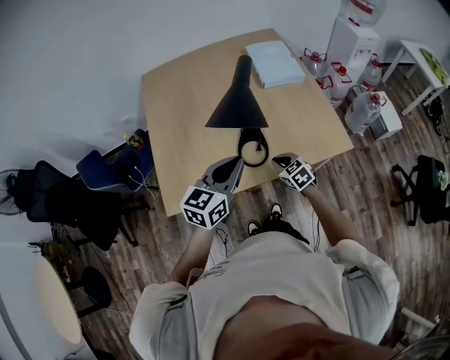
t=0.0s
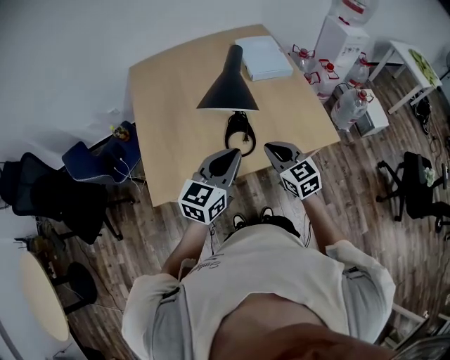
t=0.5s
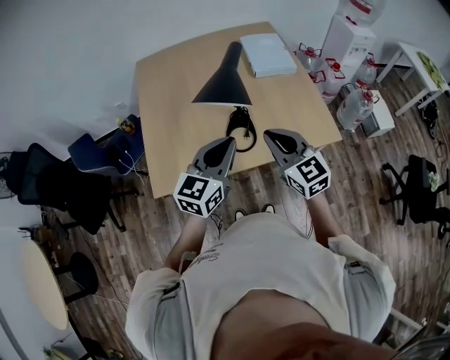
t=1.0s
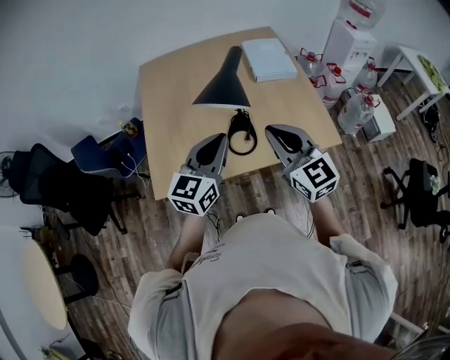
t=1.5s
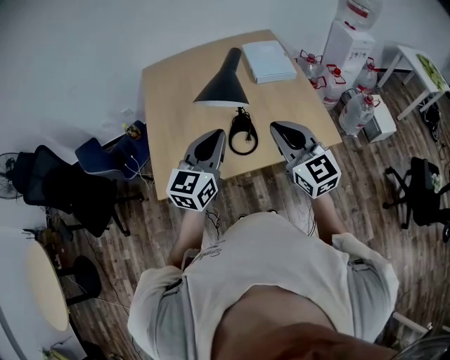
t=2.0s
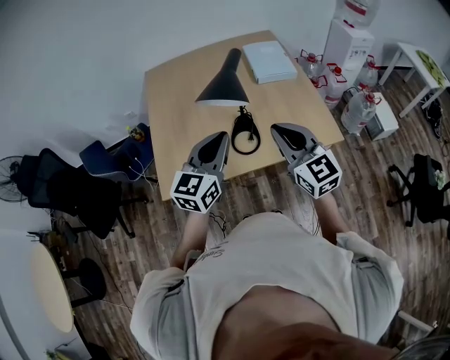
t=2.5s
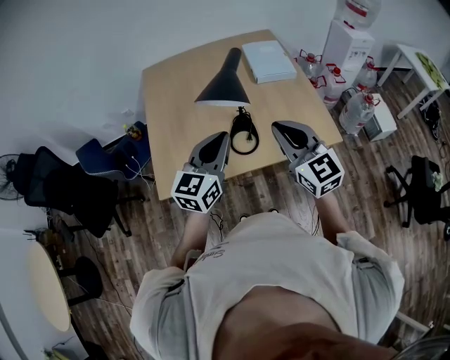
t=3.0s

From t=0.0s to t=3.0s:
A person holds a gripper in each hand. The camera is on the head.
From t=0.0s to t=1.5s: The right gripper moves upward, approximately 30 cm, and tips its fingers upward by some 40 degrees. The left gripper is displaced upward by some 5 cm.
From t=1.5s to t=3.0s: The grippers stay close to where they were, moving slightly.

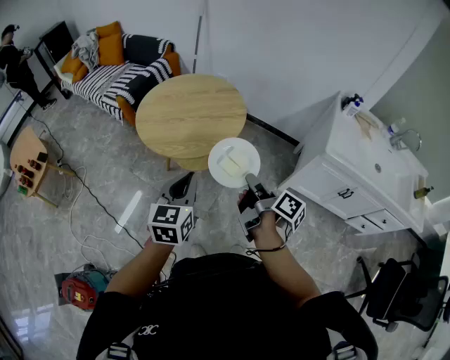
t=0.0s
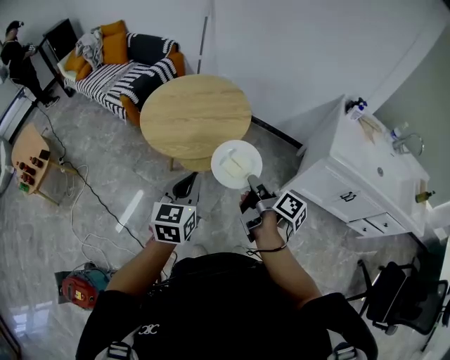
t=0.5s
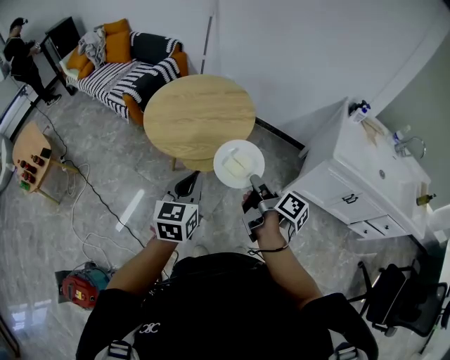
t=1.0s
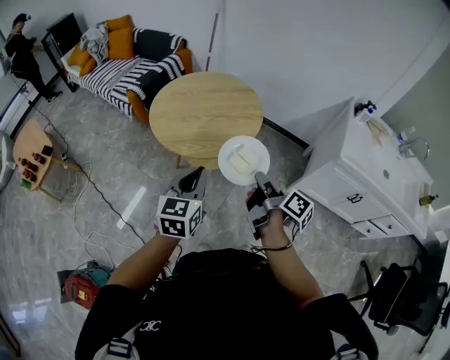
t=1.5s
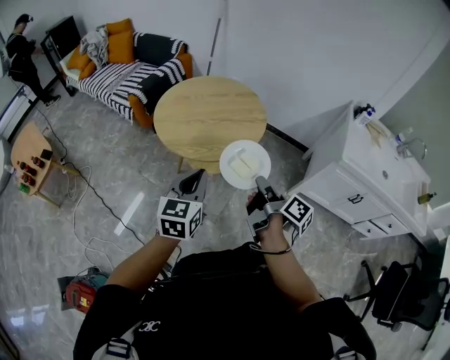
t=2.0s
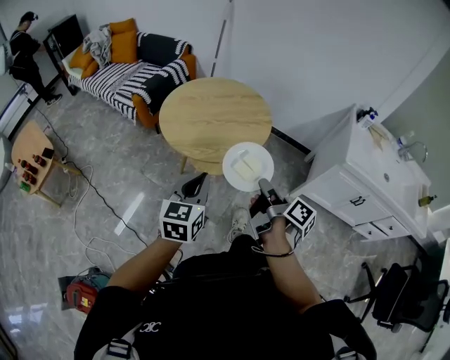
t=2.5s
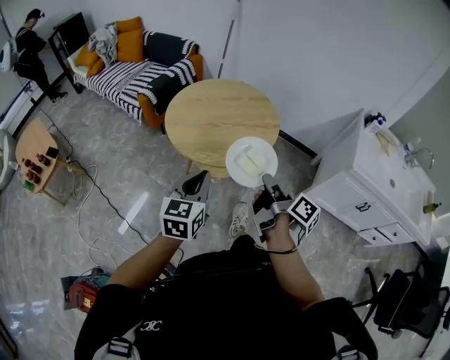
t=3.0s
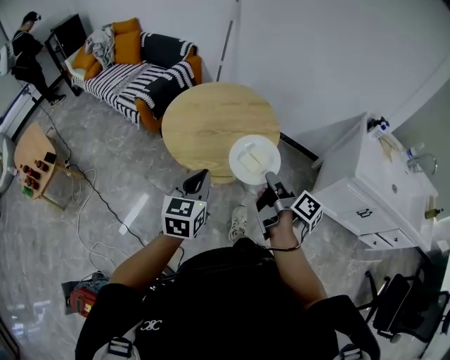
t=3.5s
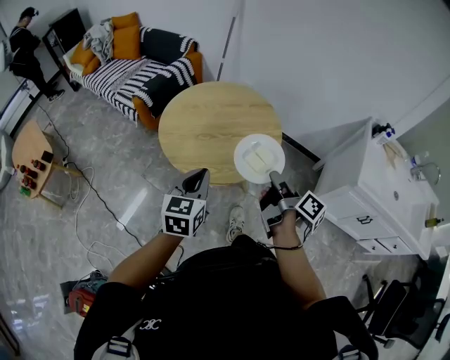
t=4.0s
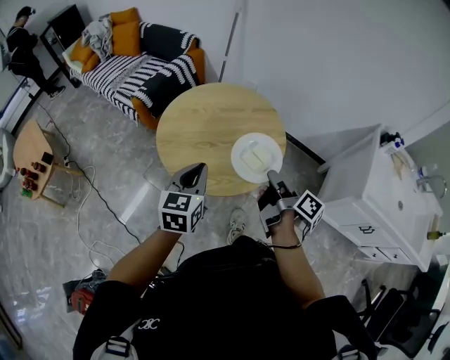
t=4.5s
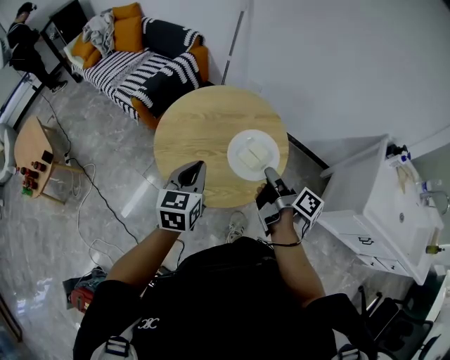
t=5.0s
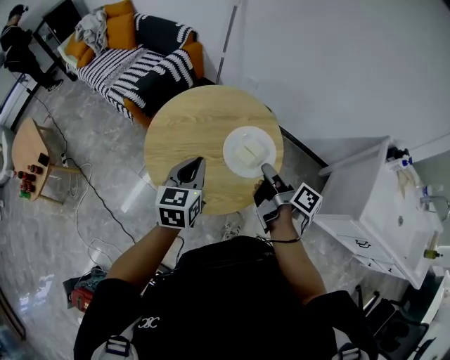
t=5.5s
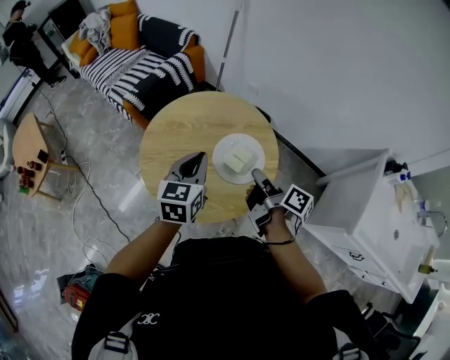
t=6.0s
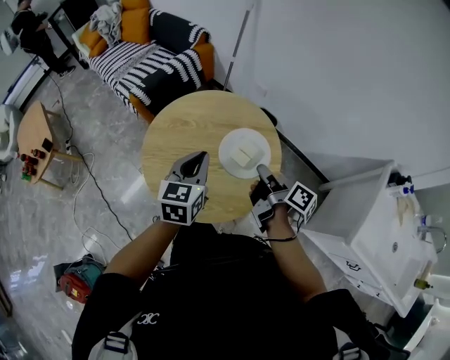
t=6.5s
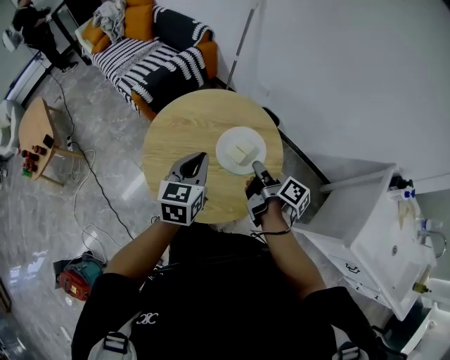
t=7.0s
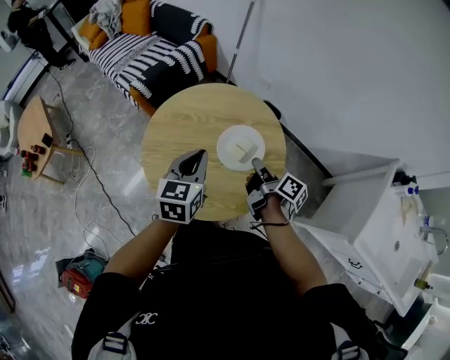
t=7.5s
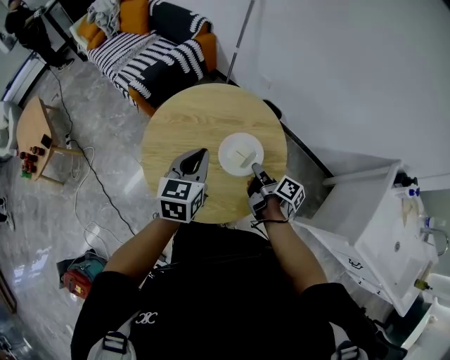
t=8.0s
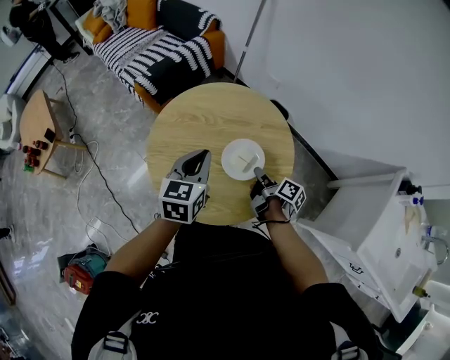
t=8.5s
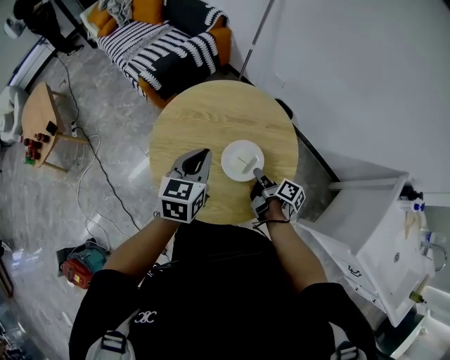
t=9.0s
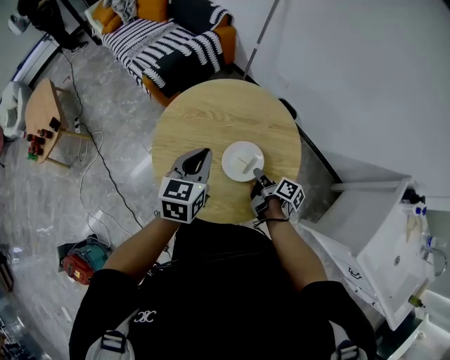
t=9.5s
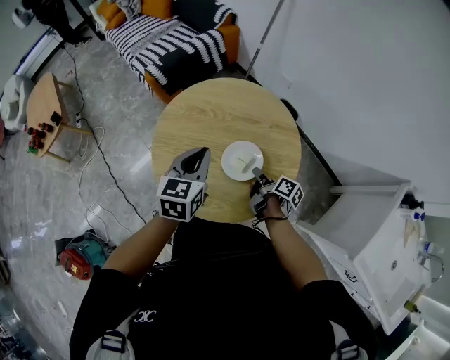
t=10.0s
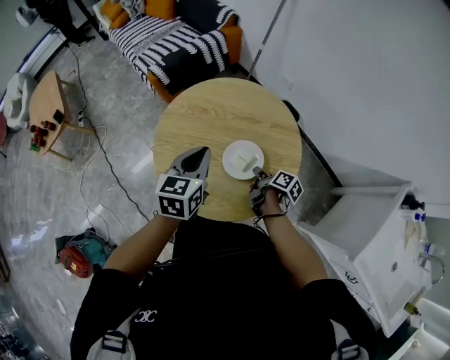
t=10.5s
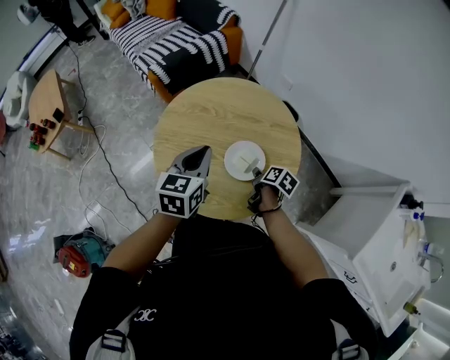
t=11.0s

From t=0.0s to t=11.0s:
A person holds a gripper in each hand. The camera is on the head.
From t=0.0s to t=2.0s: The left gripper changes place by some 10 cm.
From t=2.0s to t=3.5s: The left gripper ends up approximately 10 cm from where it was.
From t=3.5s to t=5.5s: The left gripper changes place by about 25 cm.
From t=5.5s to t=7.5s: The left gripper changes place by some 5 cm.

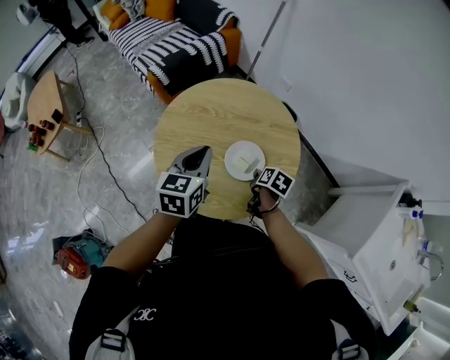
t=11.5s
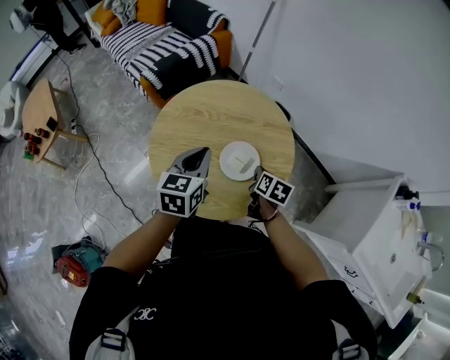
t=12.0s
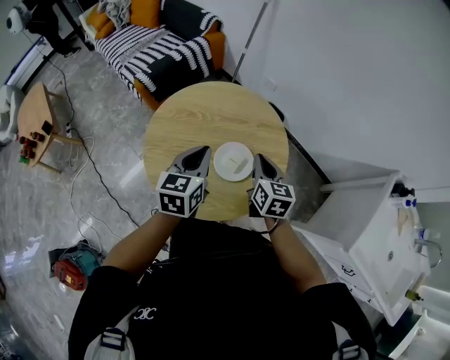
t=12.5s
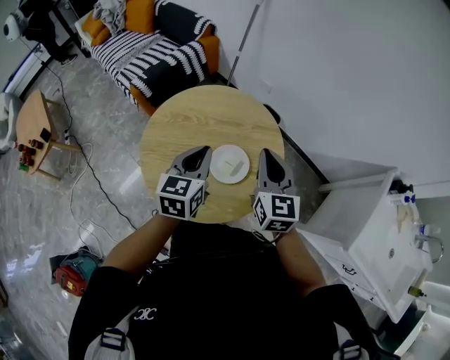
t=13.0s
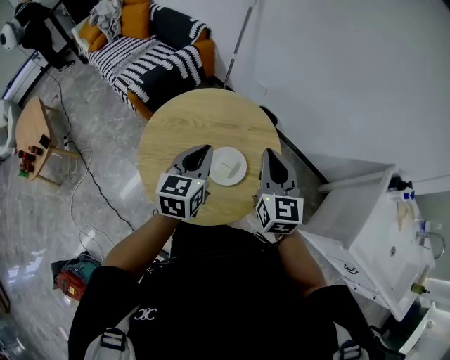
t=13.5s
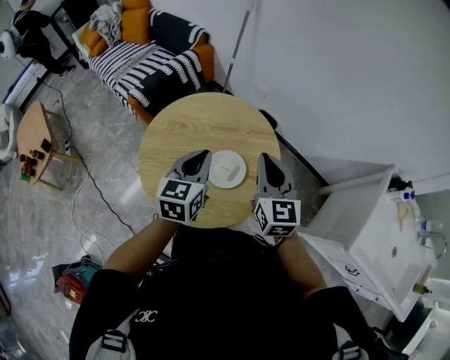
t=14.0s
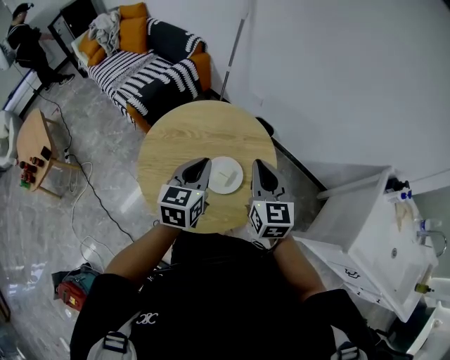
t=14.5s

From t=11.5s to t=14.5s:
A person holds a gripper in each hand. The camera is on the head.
From t=11.5s to t=13.0s: The left gripper ends up some 5 cm from where it was.

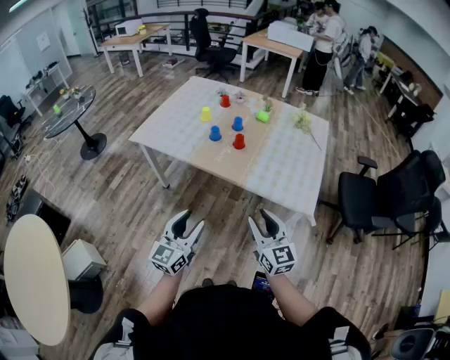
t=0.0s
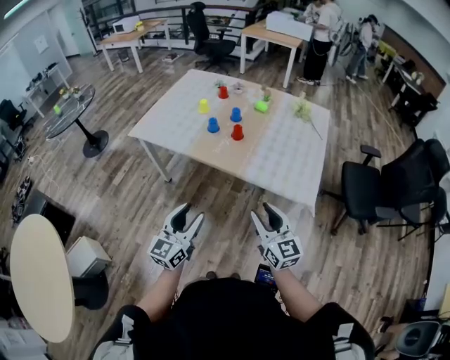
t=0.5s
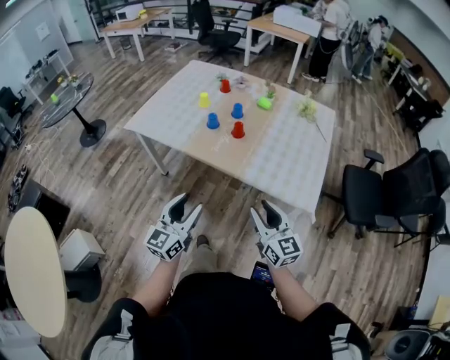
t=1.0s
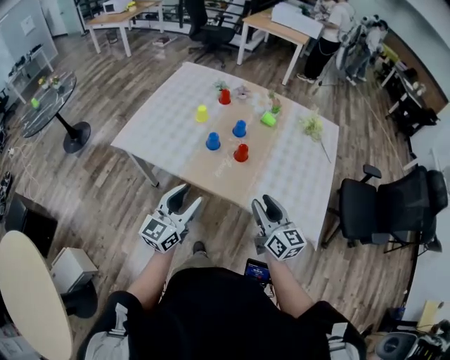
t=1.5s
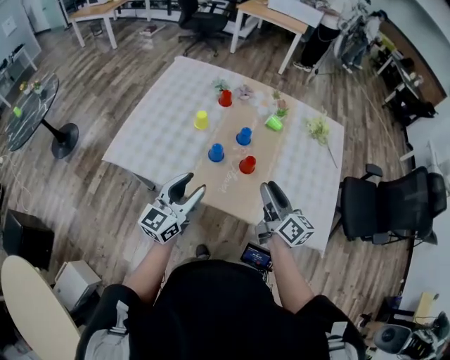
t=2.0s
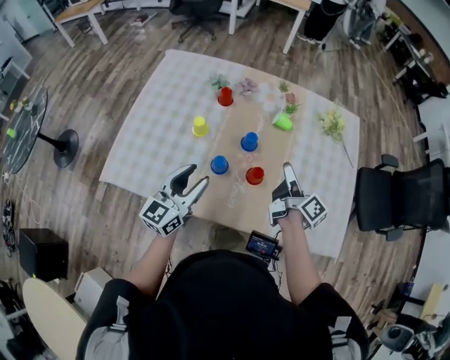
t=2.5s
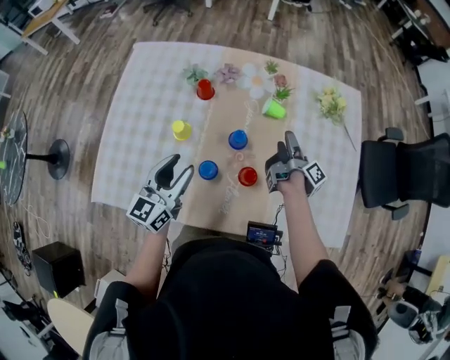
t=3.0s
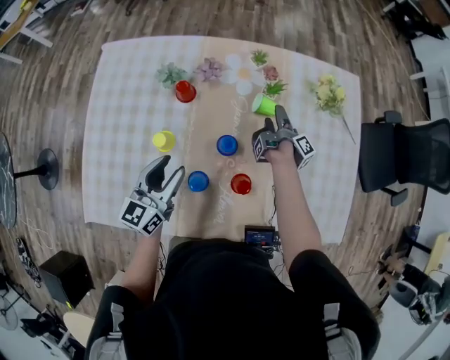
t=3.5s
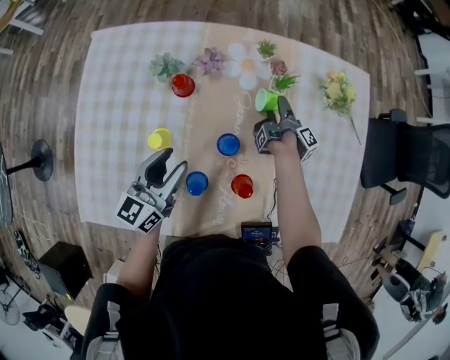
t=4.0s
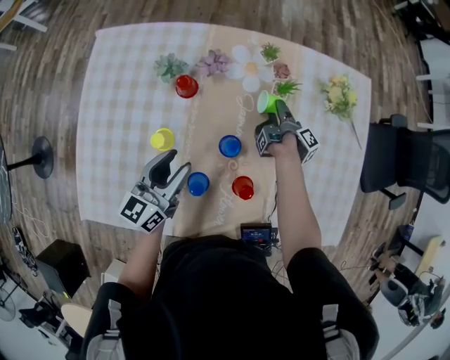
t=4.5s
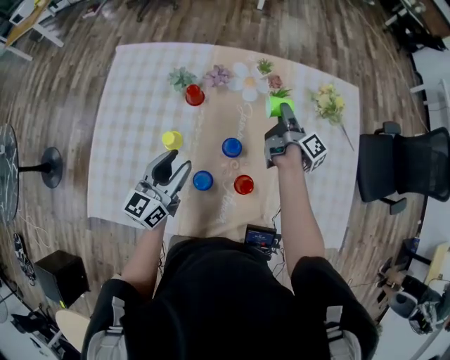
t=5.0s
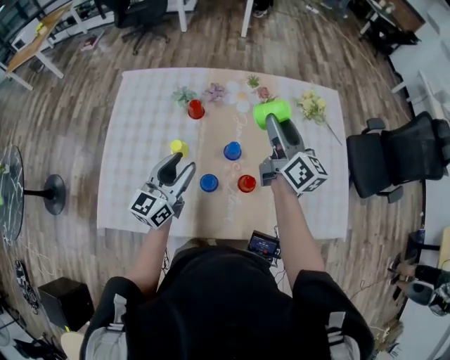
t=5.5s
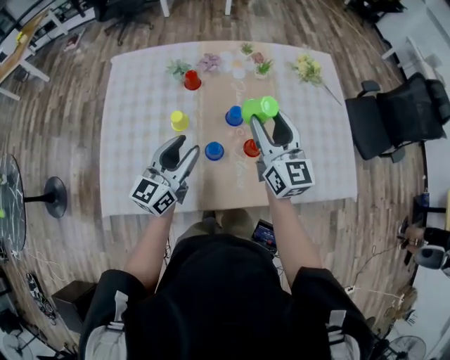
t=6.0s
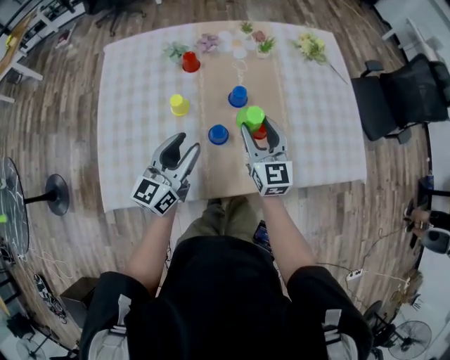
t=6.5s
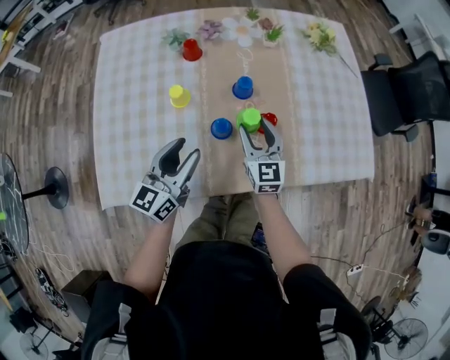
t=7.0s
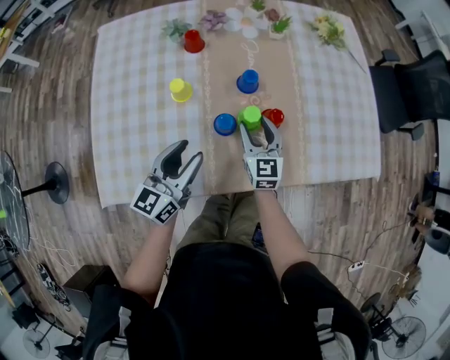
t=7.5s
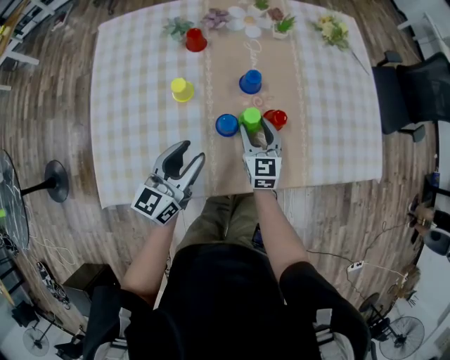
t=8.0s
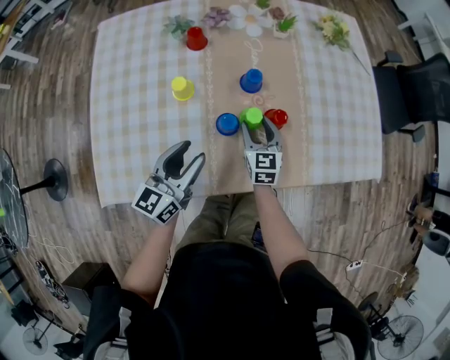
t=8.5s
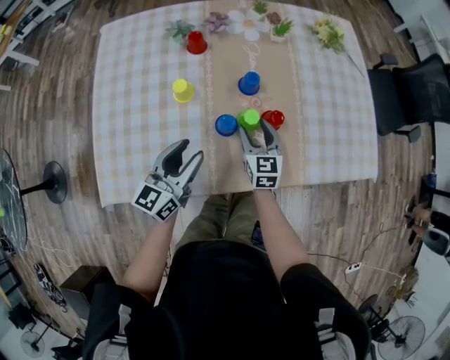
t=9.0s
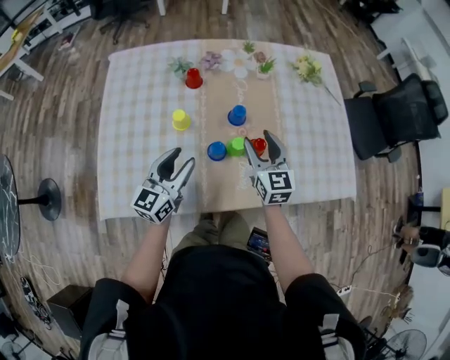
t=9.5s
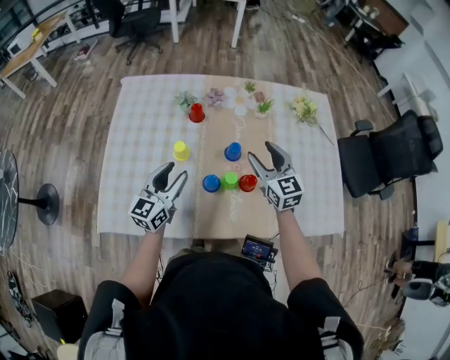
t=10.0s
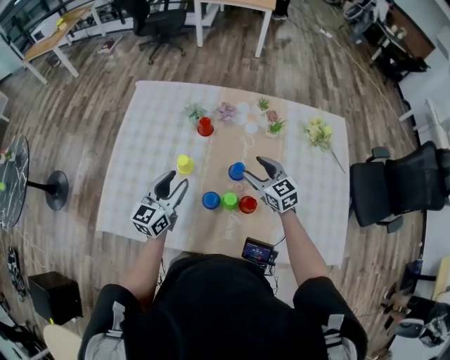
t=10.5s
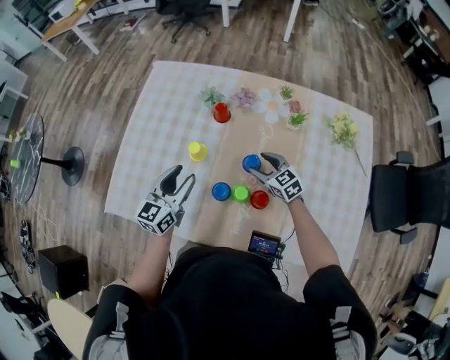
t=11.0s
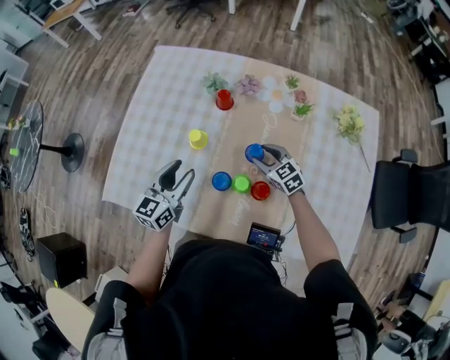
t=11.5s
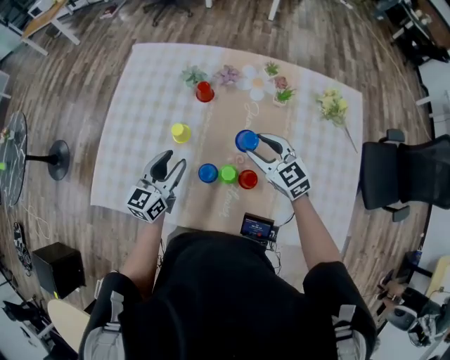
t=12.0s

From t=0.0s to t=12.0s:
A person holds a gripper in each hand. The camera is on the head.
From t=0.0s to t=2.0s: The two grippers go about 40 cm forward. The right gripper changes its angle by some 40 degrees.
From t=2.0s to t=4.0s: The right gripper is displaced forward and downward by about 50 cm, rolls clockwise, seen from behind, by some 70 degrees, and opens up; the left gripper travels forward by approximately 35 cm, and turns by about 20 degrees.
From t=4.0s to t=6.0s: The right gripper moves upward and backward, approximately 40 cm, and rolls counterclockwise, seen from behind, by about 100 degrees. The left gripper moves backward and upward, about 15 cm.
From t=6.0s to t=8.0s: The left gripper shifts some 10 cm downward. Meanwhile the right gripper shifts approximately 30 cm downward, and turns by roughly 20 degrees.
From t=8.0s to t=10.0s: The right gripper heads upward, covering approximately 20 cm, and swivels about 20 degrees. The left gripper goes approximately 10 cm upward and forward.
From t=10.0s to t=12.0s: The left gripper moves some 5 cm; the right gripper is displaced downward by about 5 cm, and rotates approximately 30 degrees.
